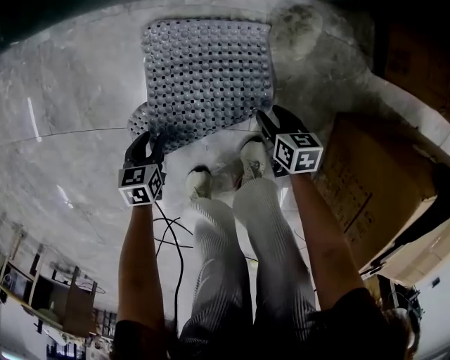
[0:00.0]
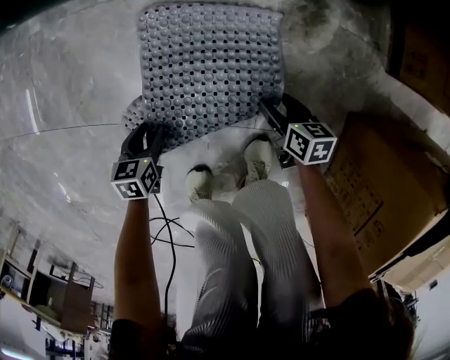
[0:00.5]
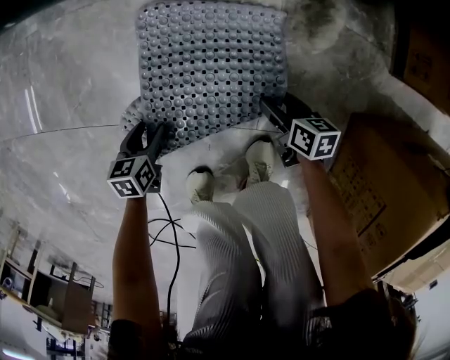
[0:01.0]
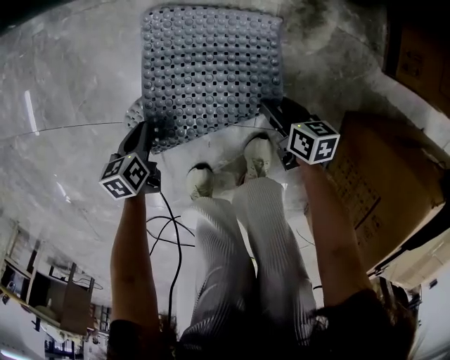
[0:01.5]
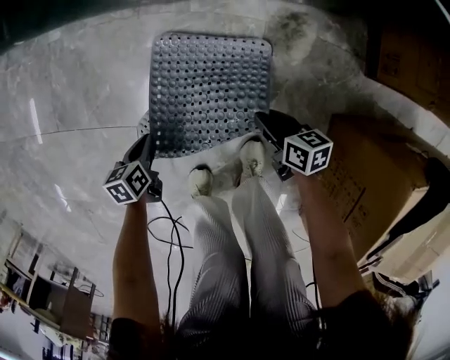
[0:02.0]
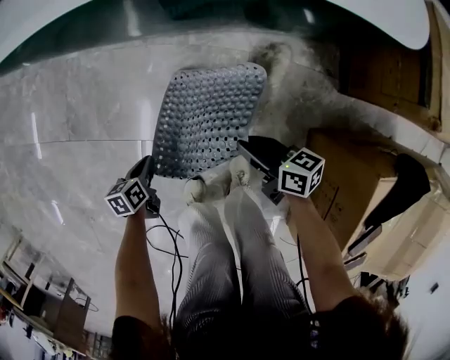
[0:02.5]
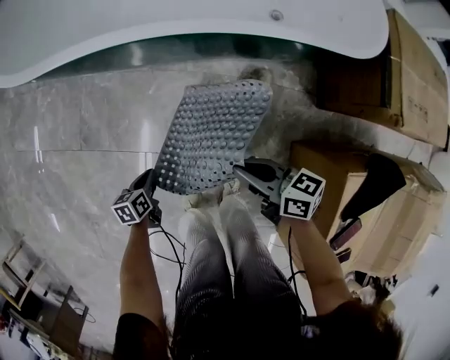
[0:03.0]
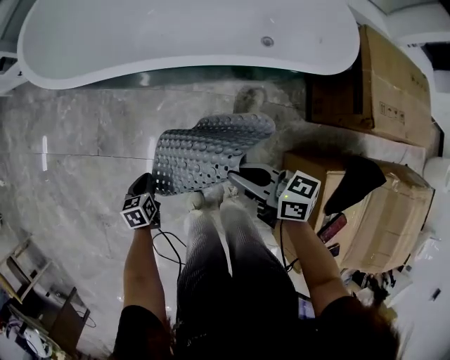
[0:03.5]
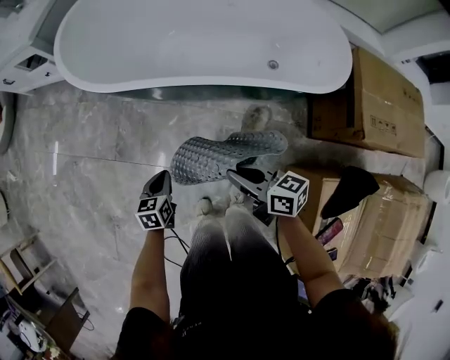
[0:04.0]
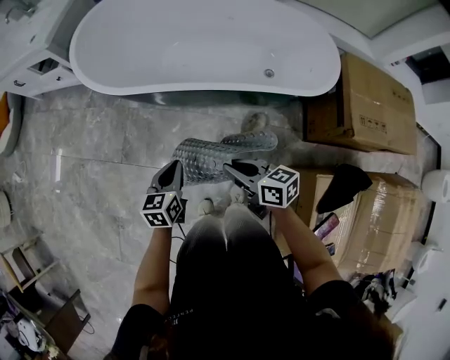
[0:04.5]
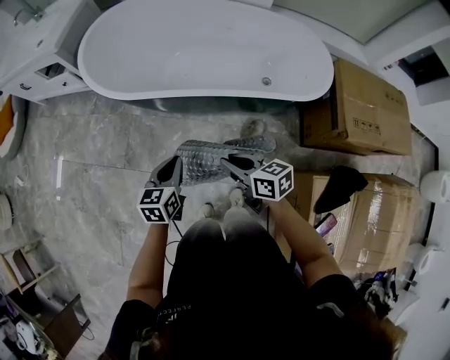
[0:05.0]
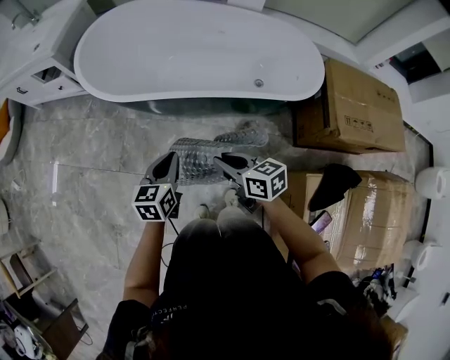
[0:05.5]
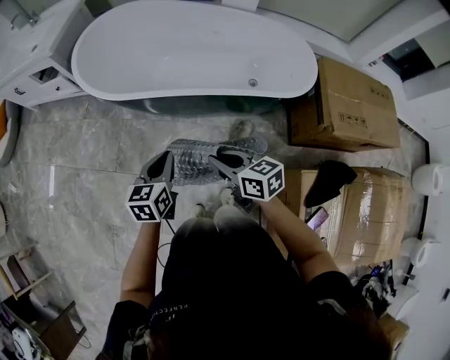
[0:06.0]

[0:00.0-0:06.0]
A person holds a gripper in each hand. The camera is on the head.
0:00.0 to 0:02.0: The right gripper moves upward, approximately 5 cm, and closes its fingers. Meanwhile the left gripper goes downward and returns, approximately 5 cm each way, rotates approximately 20 degrees, and closes up.
0:02.0 to 0:04.0: The two grippers go about 50 cm upward. The right gripper swivels about 30 degrees, while the left gripper rotates some 20 degrees.
0:04.0 to 0:06.0: The left gripper travels upward by some 20 cm; the right gripper shifts roughly 10 cm upward.

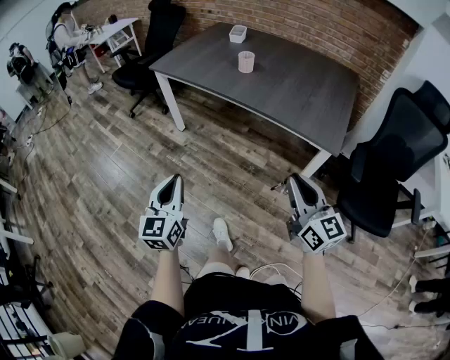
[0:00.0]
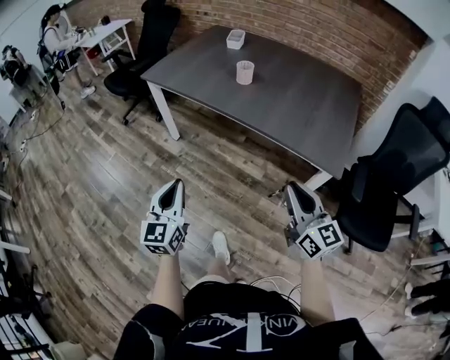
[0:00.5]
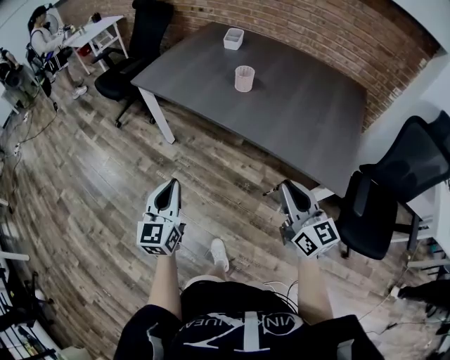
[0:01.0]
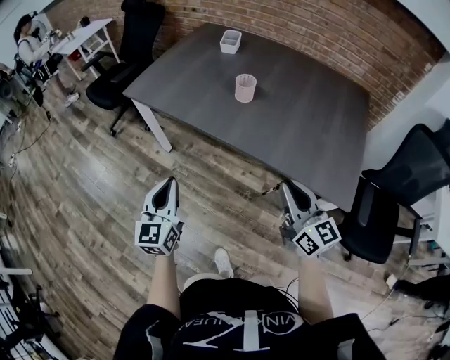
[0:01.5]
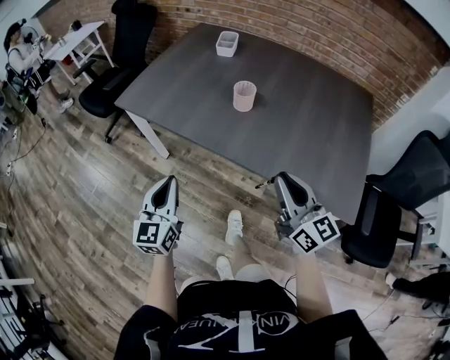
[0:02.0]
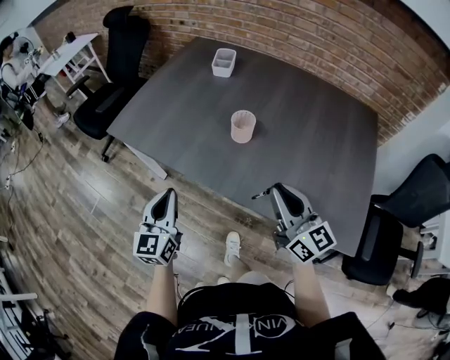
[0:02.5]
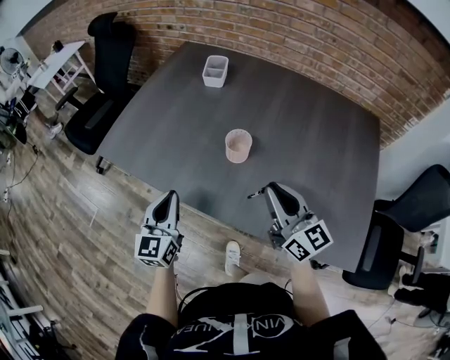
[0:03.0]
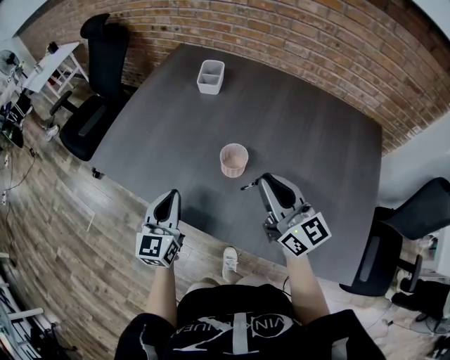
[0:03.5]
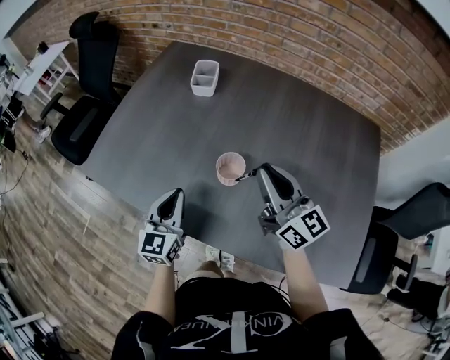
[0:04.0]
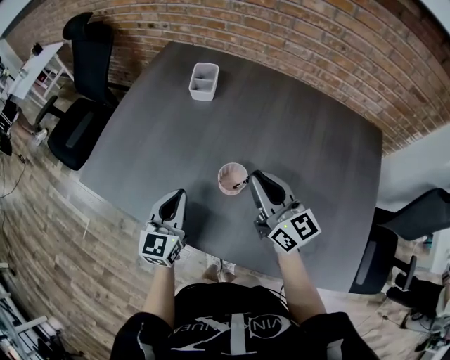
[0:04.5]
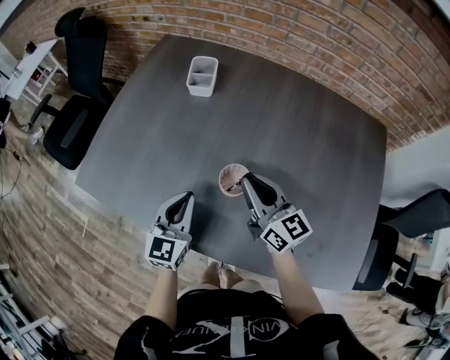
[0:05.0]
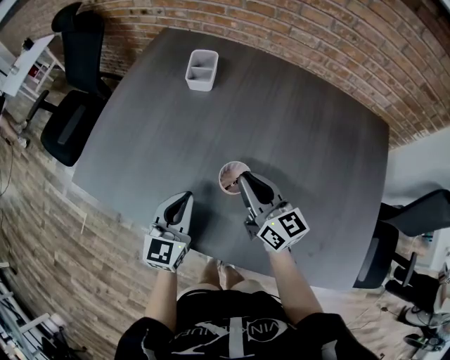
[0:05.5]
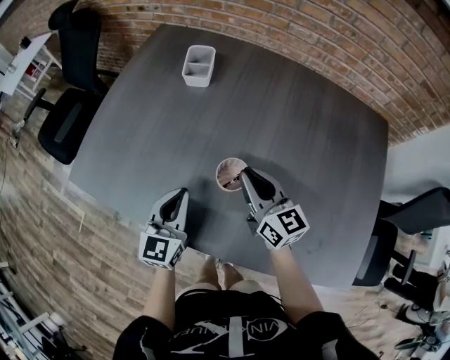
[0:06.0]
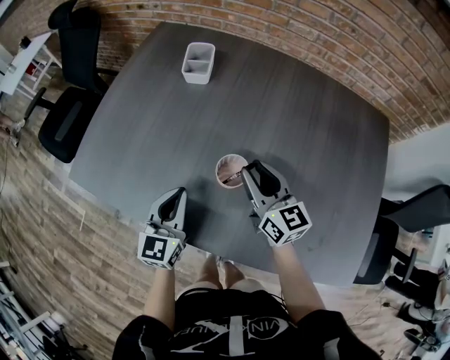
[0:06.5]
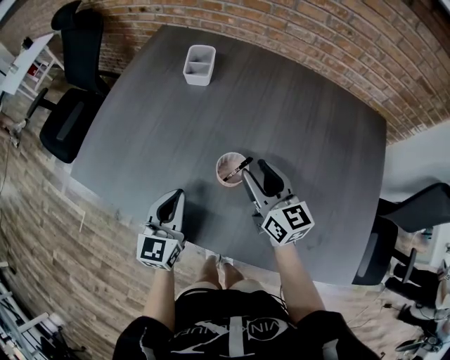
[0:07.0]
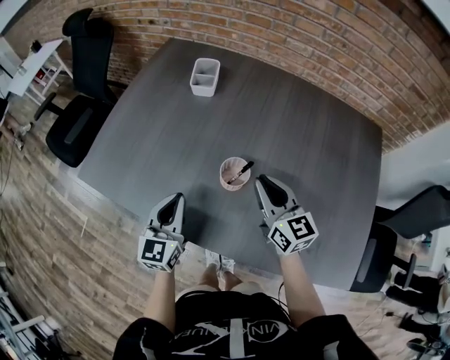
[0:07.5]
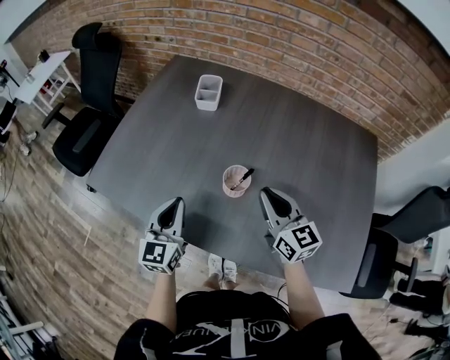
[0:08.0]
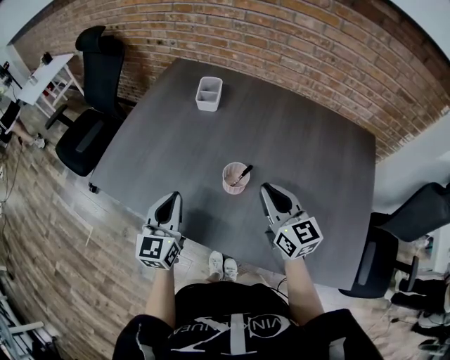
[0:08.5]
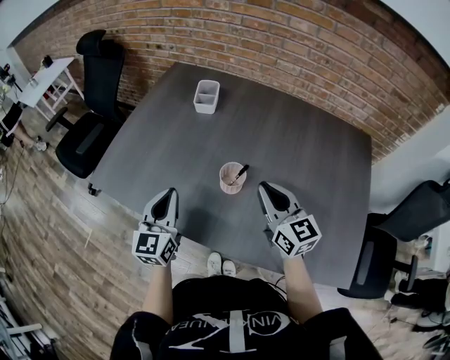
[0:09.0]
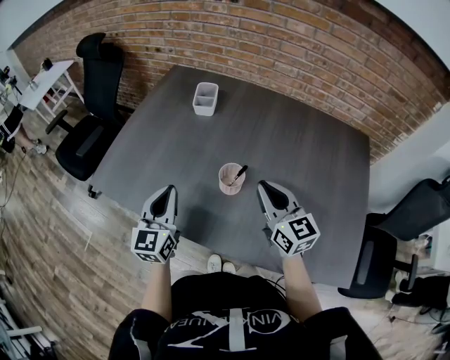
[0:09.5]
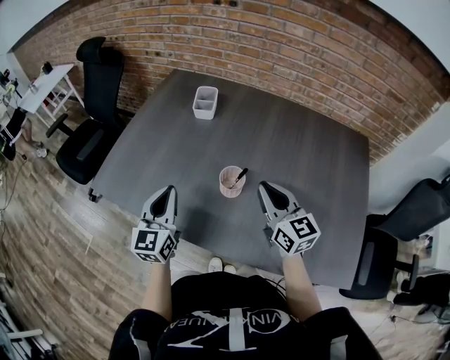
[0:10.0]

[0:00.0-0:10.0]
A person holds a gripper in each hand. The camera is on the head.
0:00.0 to 0:02.0: Both grippers move forward, roughly 40 cm.
0:02.0 to 0:04.0: The two grippers go about 30 cm forward.
0:04.0 to 0:06.0: The left gripper ends up approximately 5 cm from where it was. The right gripper travels downward and forward by some 15 cm.
0:06.0 to 0:08.0: The left gripper shifts by roughly 5 cm. The right gripper travels backward and upward by about 10 cm, and opens and closes again.
0:08.0 to 0:10.0: The left gripper is displaced upward by roughly 5 cm.

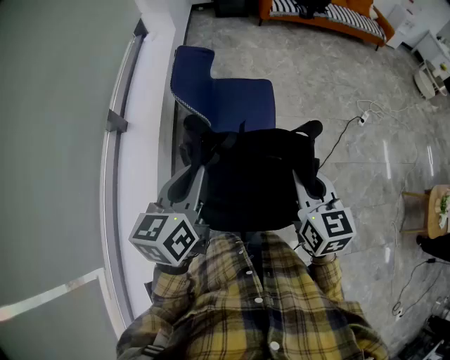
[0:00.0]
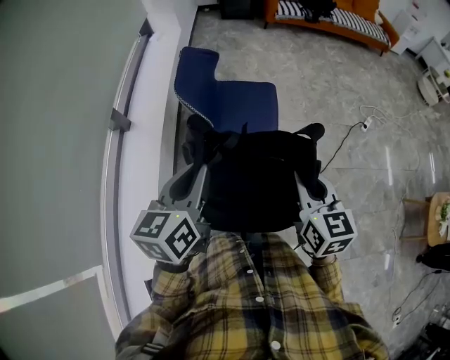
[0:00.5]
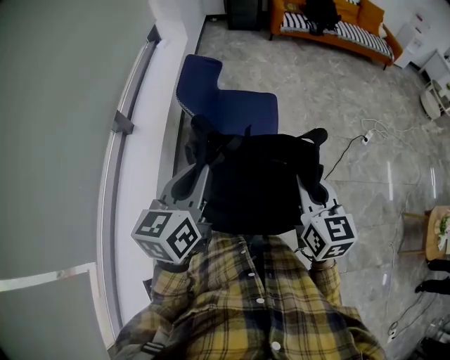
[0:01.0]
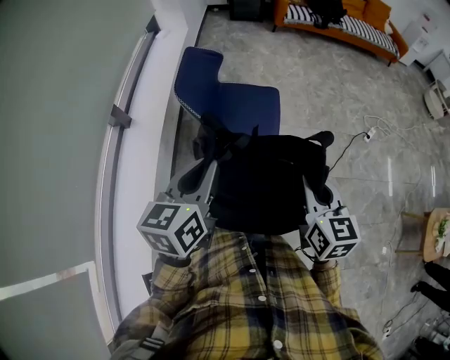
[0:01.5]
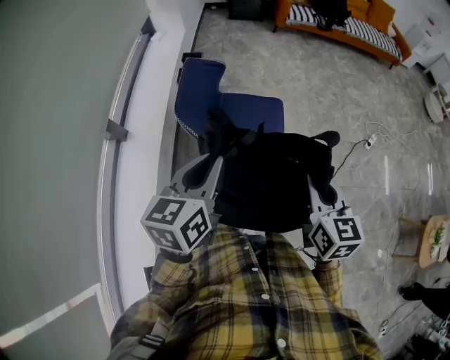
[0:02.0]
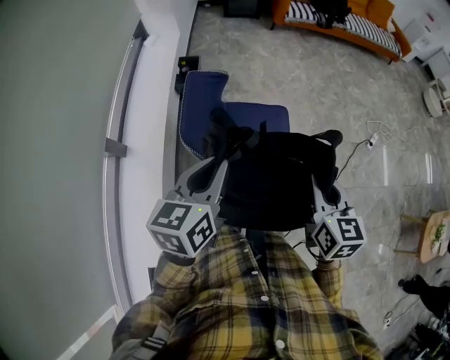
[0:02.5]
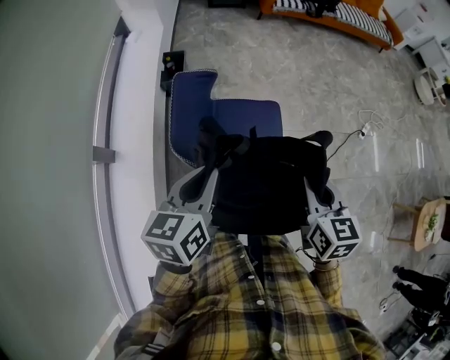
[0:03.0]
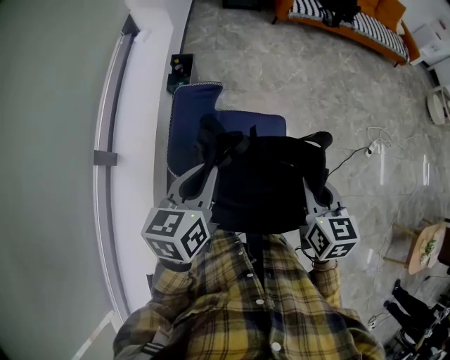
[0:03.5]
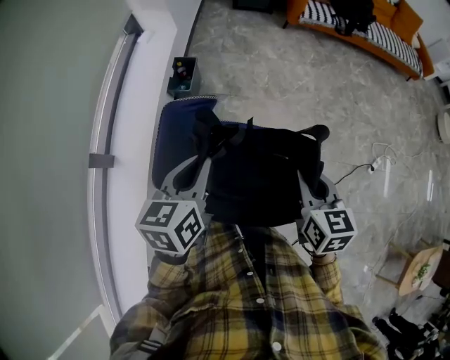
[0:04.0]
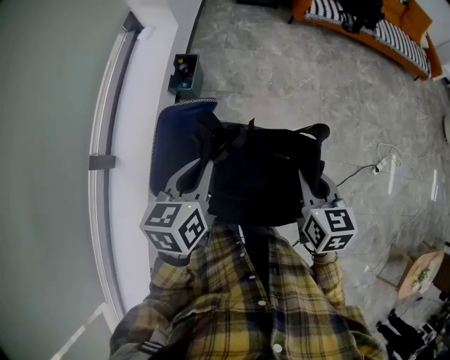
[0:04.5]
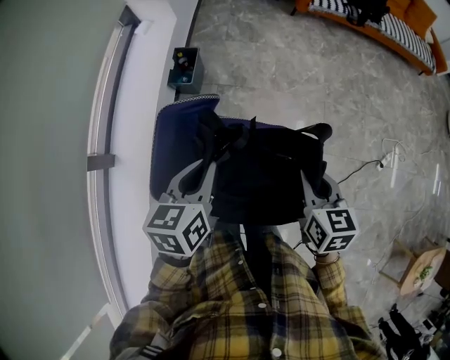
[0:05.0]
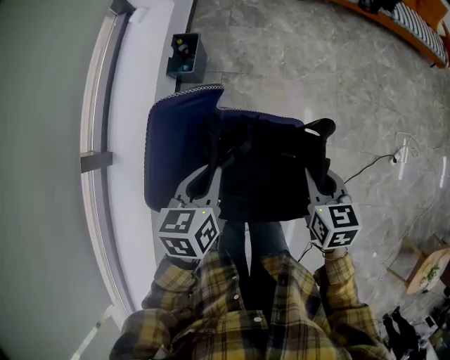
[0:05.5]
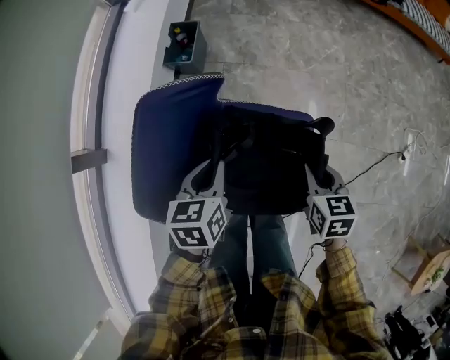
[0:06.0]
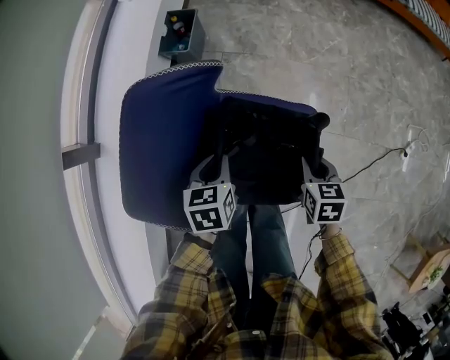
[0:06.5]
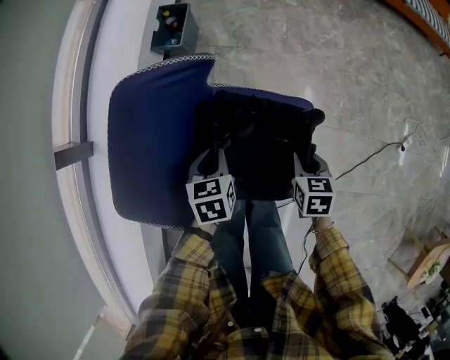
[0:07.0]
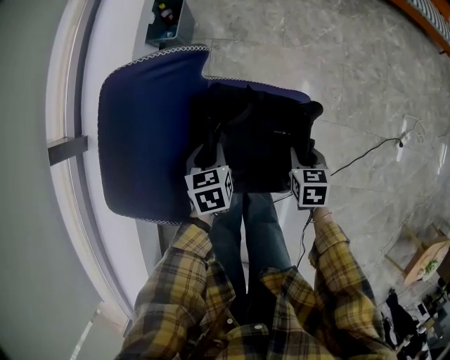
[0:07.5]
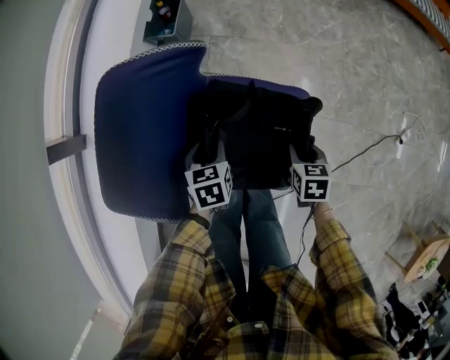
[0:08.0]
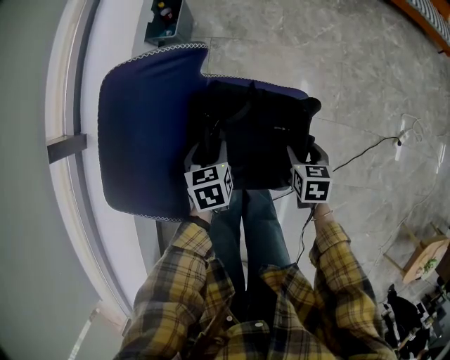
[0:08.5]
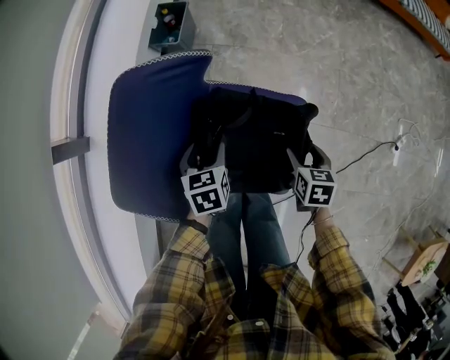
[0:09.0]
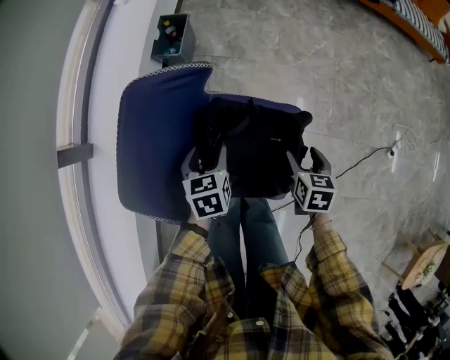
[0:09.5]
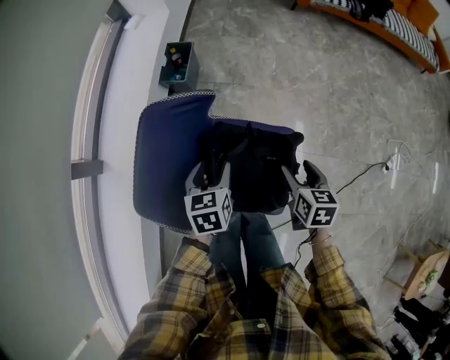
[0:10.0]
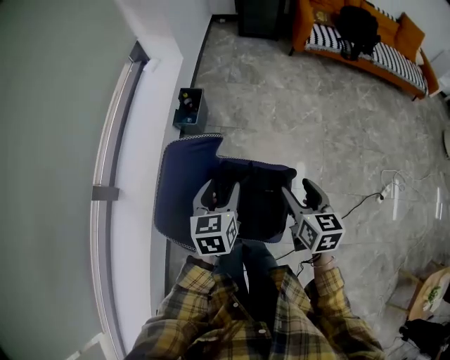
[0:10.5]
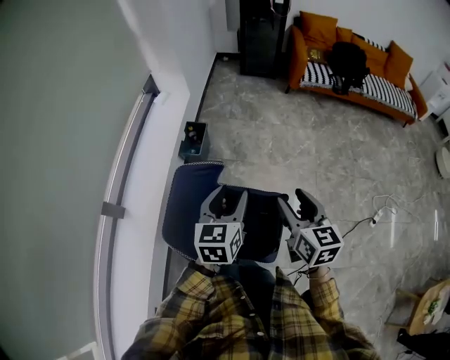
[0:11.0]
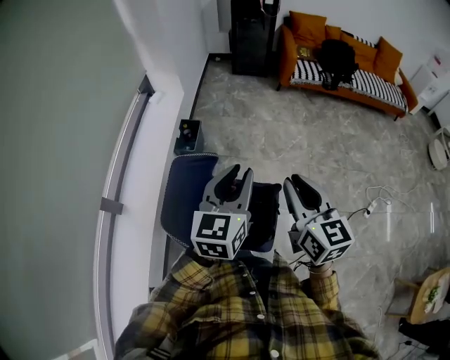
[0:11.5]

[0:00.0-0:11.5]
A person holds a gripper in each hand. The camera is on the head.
0:00.0 to 0:02.0: The two grippers go about 15 cm forward.
0:02.0 to 0:04.0: Both grippers move forward, some 30 cm.
0:04.0 to 0:06.0: Both grippers travel together downward, roughly 25 cm.
0:06.0 to 0:07.5: Both grippers move downward, about 15 cm.
0:07.5 to 0:09.5: Both grippers move upward, about 5 cm. The right gripper opens up. Meanwhile the left gripper opens.
0:09.5 to 0:11.5: Both grippers travel together upward, roughly 40 cm. The left gripper tilts its fingers approximately 40 degrees upward, and closes up; the right gripper tilts its fingers about 40 degrees upward, and closes up.
